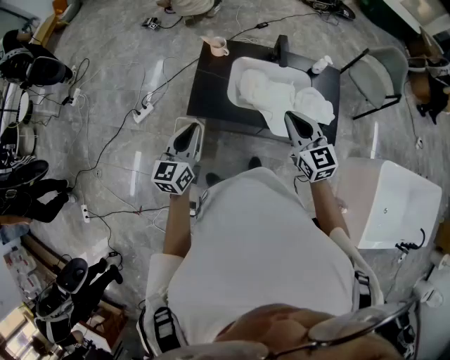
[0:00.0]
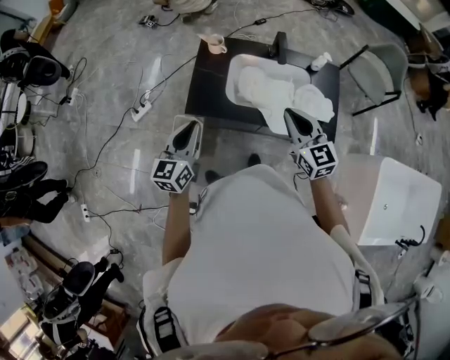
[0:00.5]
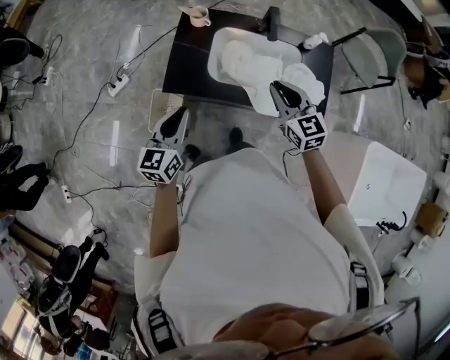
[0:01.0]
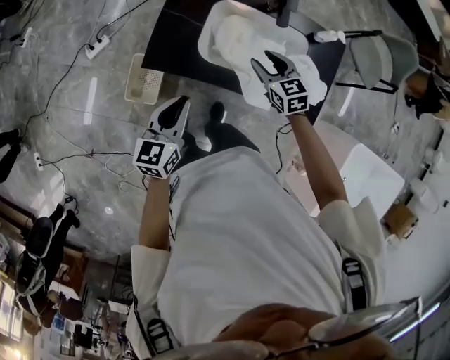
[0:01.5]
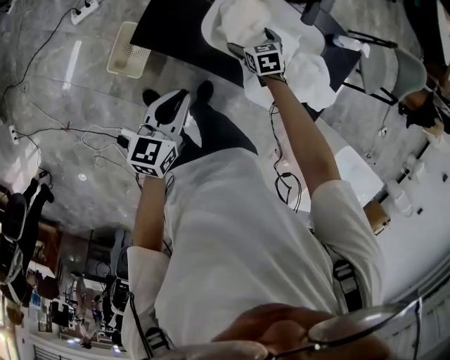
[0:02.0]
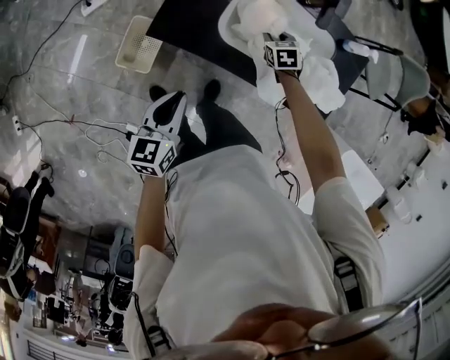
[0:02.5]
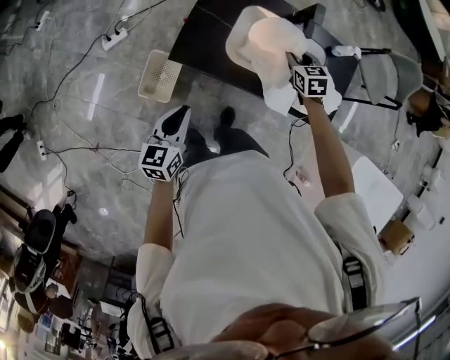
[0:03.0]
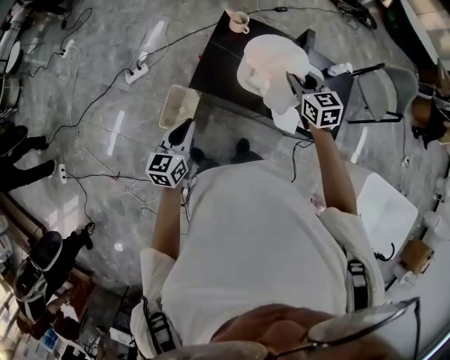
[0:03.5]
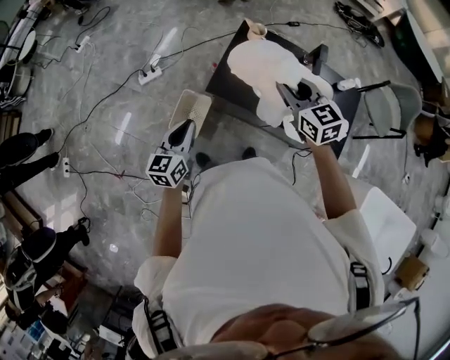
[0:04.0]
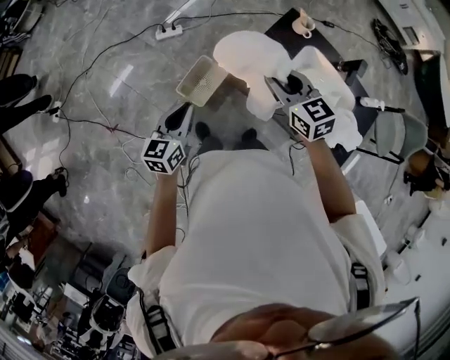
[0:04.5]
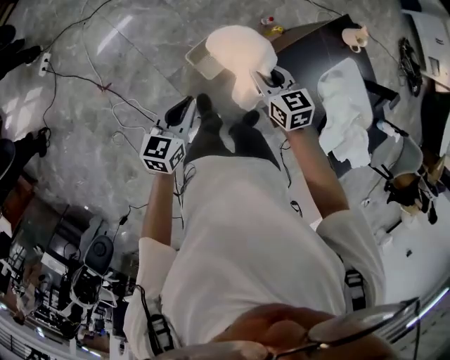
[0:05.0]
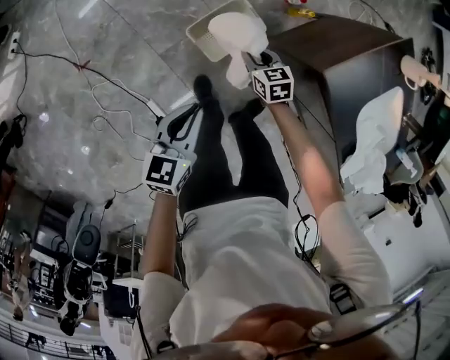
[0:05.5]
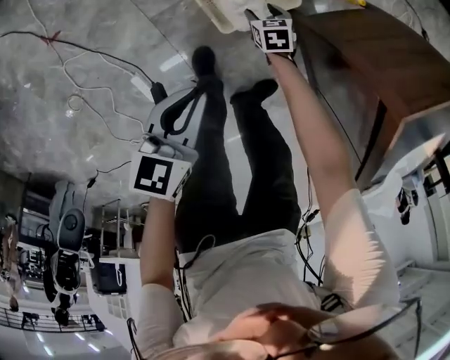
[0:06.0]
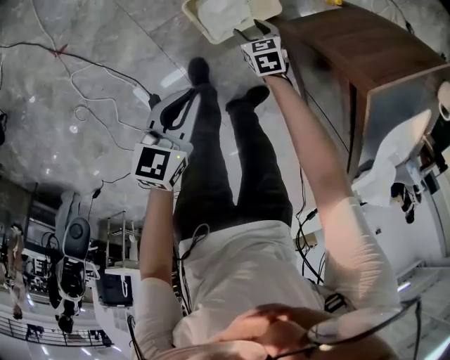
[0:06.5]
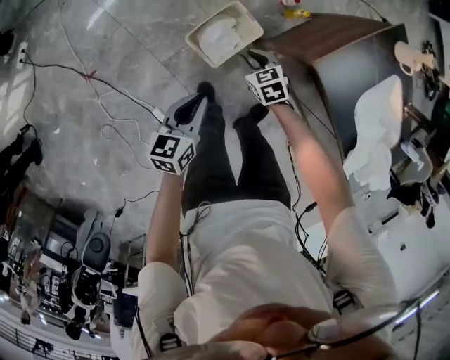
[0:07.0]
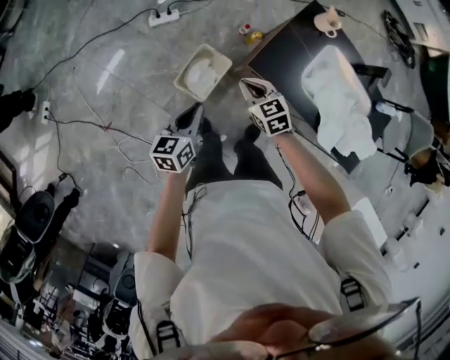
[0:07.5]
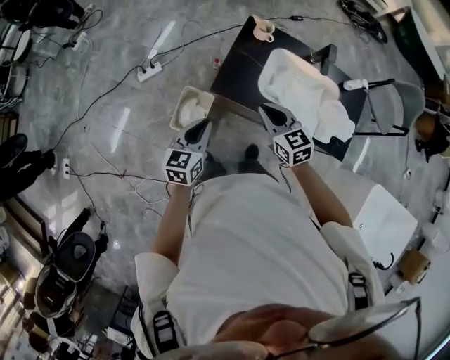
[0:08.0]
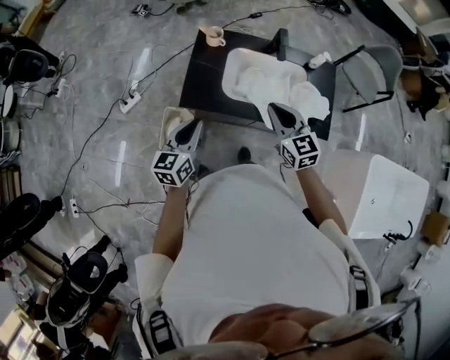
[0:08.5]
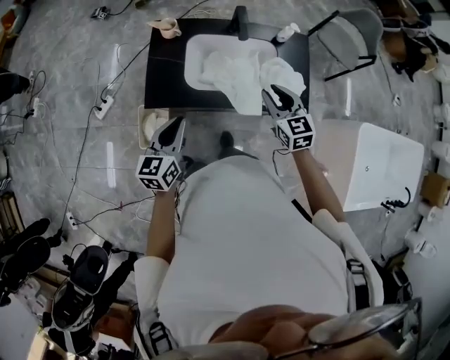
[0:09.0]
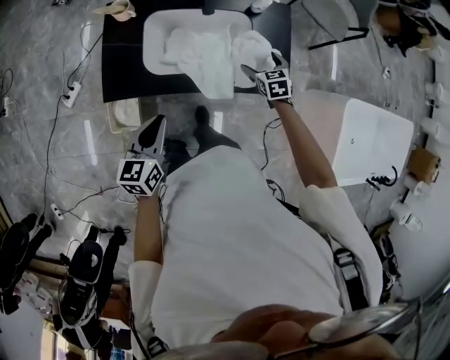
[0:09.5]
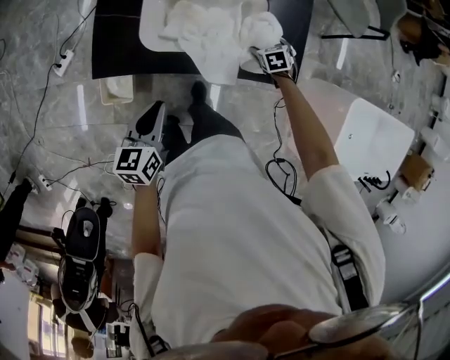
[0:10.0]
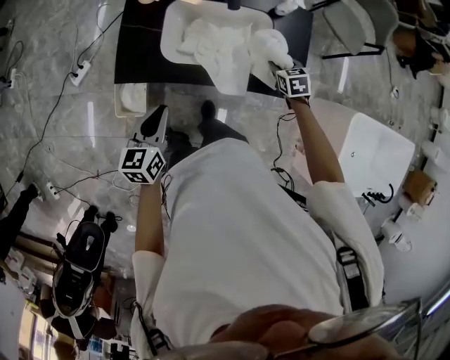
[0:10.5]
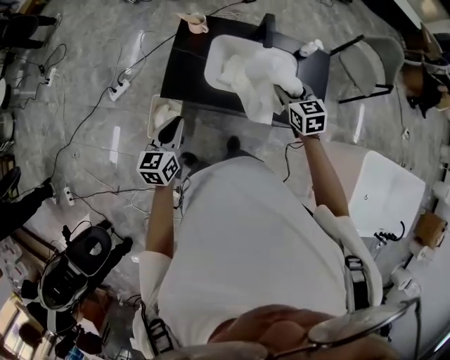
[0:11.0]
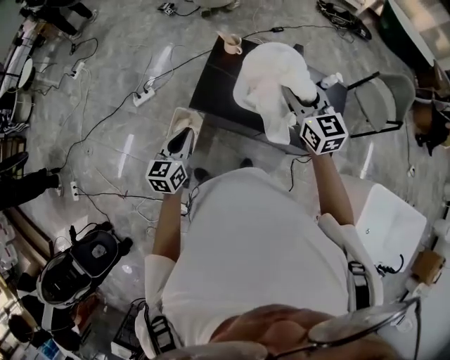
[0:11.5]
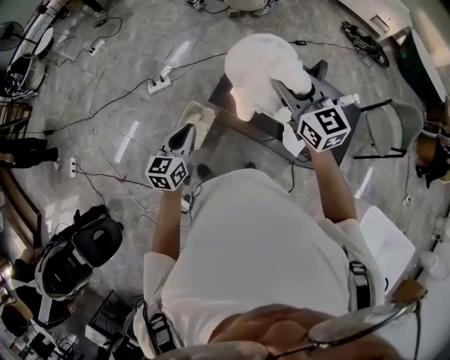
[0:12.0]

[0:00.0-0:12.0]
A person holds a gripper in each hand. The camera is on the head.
0:00.0 to 0:02.0: The left gripper heads downward, covering some 20 cm, and swivels about 20 degrees. The right gripper heads downward and forward, covering about 50 cm, angles its fingers downward, by about 50 degrees, and opens its fingers.
0:02.0 to 0:04.0: The right gripper moves upward, some 50 cm, tilts its fingers roughly 40 degrees upward, and closes its fingers, while the left gripper travels to the left and upward by approximately 25 cm.
0:04.0 to 0:06.0: The right gripper heads downward and to the left, covering about 1 m, and tips its fingers downward by roughly 50 degrees, while the left gripper heads downward and to the left, covering approximately 60 cm, and turns by roughly 30 degrees.
0:06.0 to 0:08.0: The left gripper travels upward by roughly 50 cm, and changes its angle by roughly 40 degrees. Meanwhile the right gripper travels upward by some 80 cm, tilts its fingers approximately 40 degrees upward, and closes up.
0:08.0 to 0:10.0: The left gripper ends up about 30 cm from where it was; the right gripper ends up approximately 60 cm from where it was, angles its fingers downward, by about 40 degrees, and opens its fingers.
0:10.0 to 0:12.0: The right gripper goes about 60 cm upward, points its fingers about 60 degrees further upward, and closes up; the left gripper changes place by some 35 cm, and changes its angle by roughly 30 degrees.

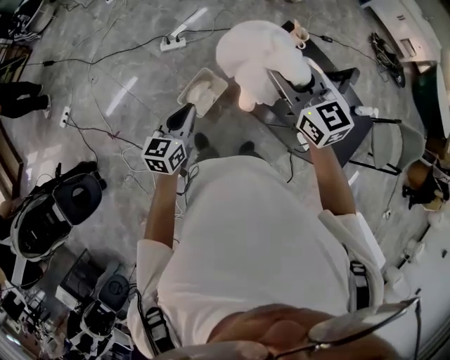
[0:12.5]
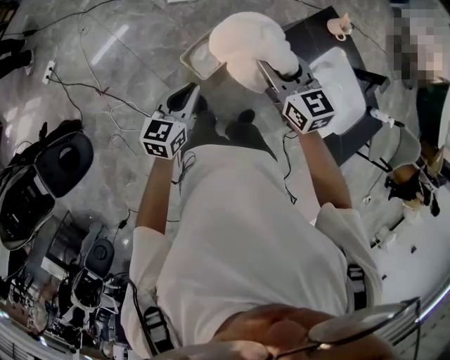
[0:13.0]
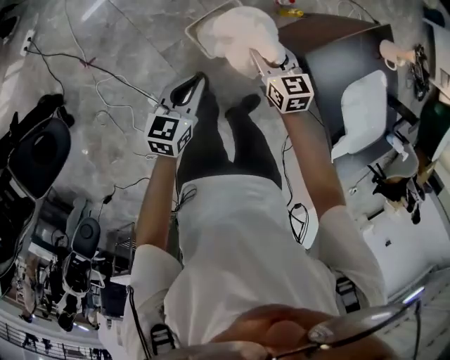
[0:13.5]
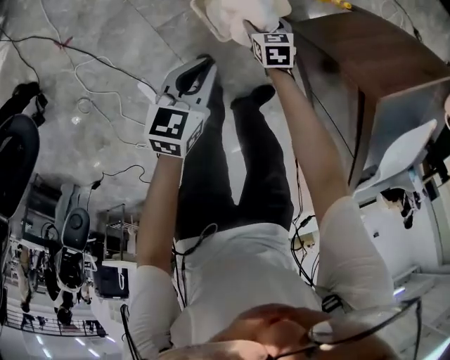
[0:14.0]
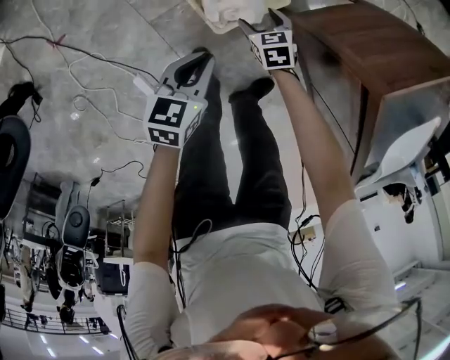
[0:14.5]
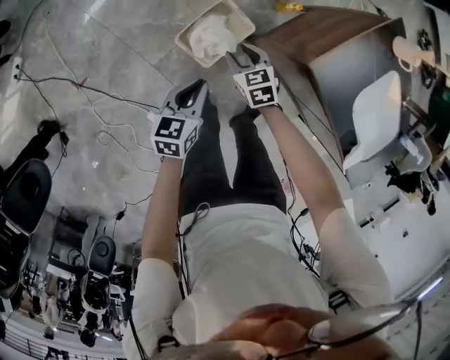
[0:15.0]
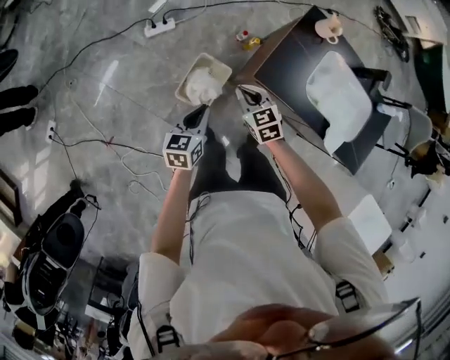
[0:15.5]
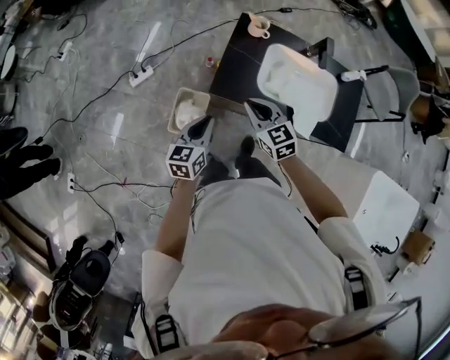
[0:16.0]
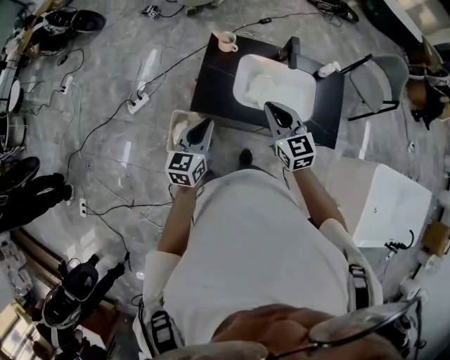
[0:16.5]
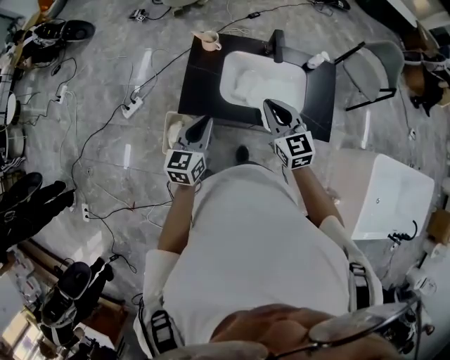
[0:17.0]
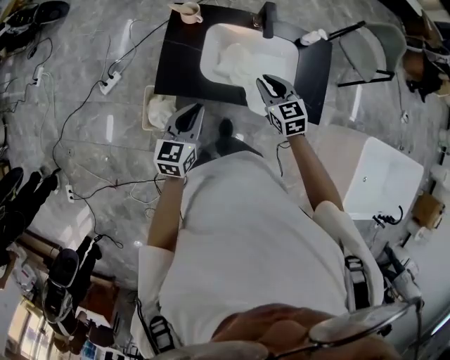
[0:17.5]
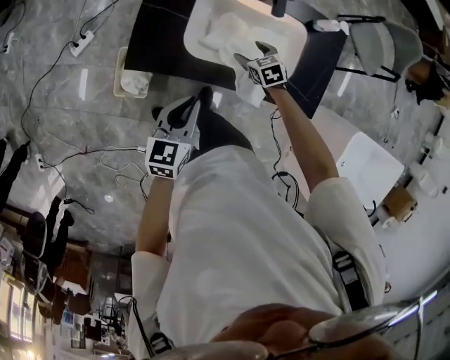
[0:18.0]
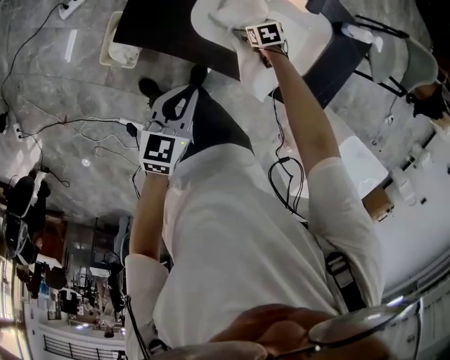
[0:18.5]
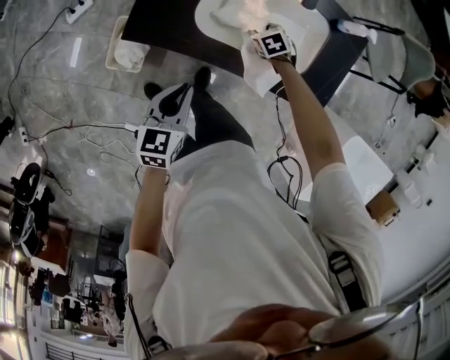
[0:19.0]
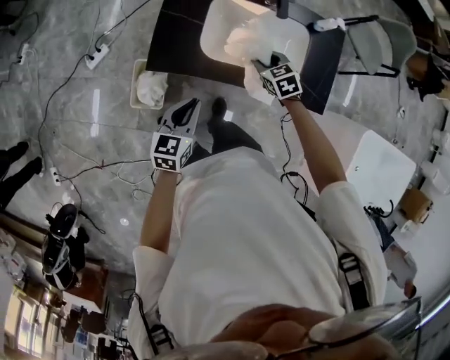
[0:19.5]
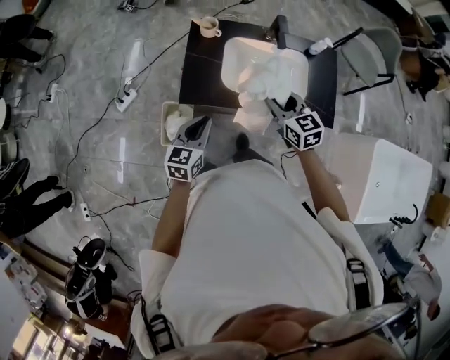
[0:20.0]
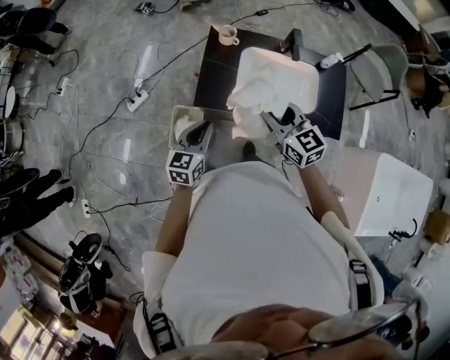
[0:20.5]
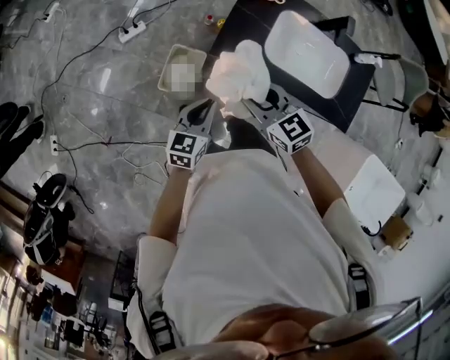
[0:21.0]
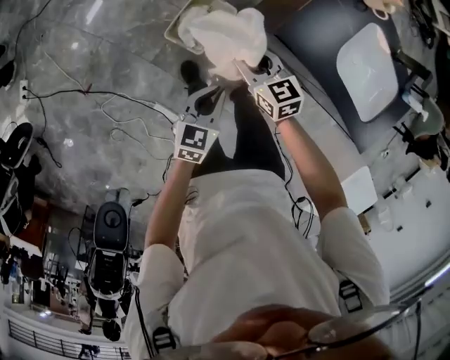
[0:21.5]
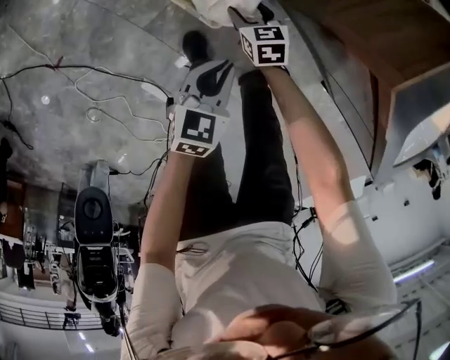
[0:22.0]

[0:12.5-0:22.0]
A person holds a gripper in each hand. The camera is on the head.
0:12.5 to 0:14.5: The right gripper is displaced downward by approximately 90 cm, tips its fingers downward by about 50 degrees, and opens up, while the left gripper goes some 60 cm downward, and swivels approximately 30 degrees.
0:14.5 to 0:16.5: Both grippers move upward, about 70 cm. The right gripper tips its fingers upward by some 50 degrees, and closes up, while the left gripper changes its angle by some 50 degrees.
0:16.5 to 0:18.0: The right gripper shifts about 40 cm downward, tilts its fingers some 40 degrees downward, and opens its fingers. Meanwhile the left gripper heads downward and to the right, covering approximately 20 cm.
0:18.0 to 0:20.0: The right gripper heads upward, covering approximately 30 cm, angles its fingers upward, by approximately 30 degrees, and closes up; the left gripper changes place by about 15 cm.
0:20.0 to 0:22.0: The two grippers go about 60 cm downward. The left gripper rotates roughly 30 degrees. The right gripper points its fingers about 30 degrees further downward.

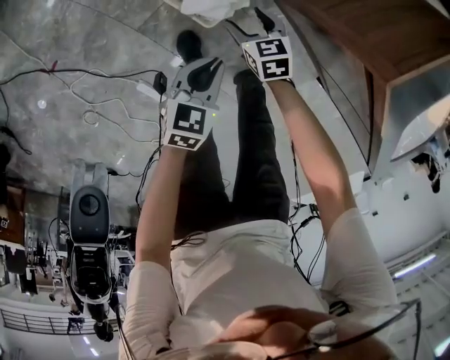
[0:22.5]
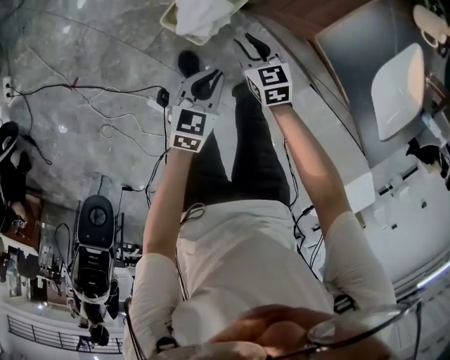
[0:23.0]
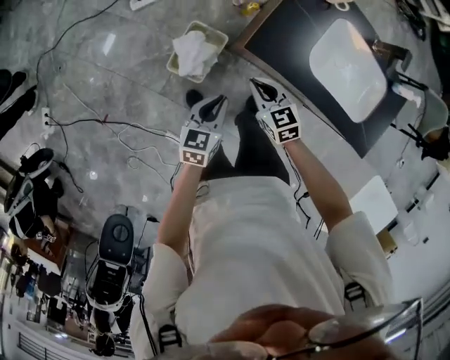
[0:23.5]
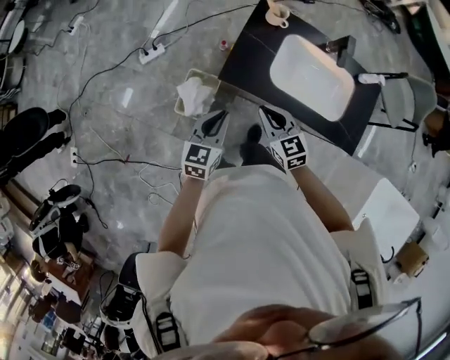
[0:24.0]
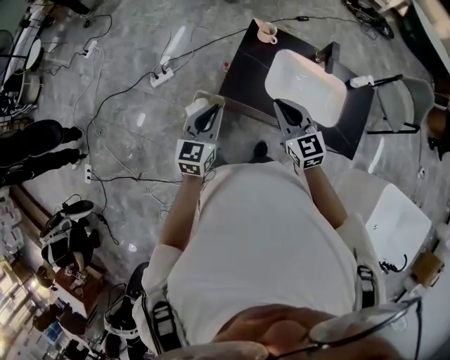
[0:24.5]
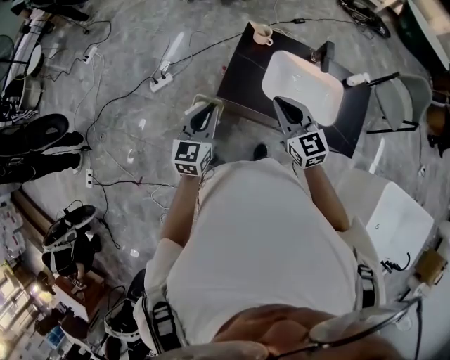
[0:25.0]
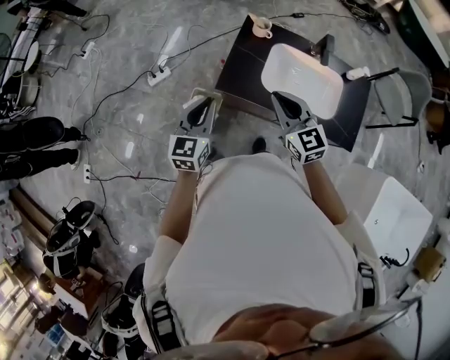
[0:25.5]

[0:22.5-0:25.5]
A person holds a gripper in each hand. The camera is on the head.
0:22.5 to 0:24.0: The two grippers go about 60 cm upward and to the right. The right gripper tips its fingers upward by roughly 30 degrees, and closes up. The left gripper turns by approximately 30 degrees.
0:24.0 to 0:25.5: The left gripper is displaced upward by some 10 cm. Meanwhile the right gripper goes roughly 15 cm upward and to the right.

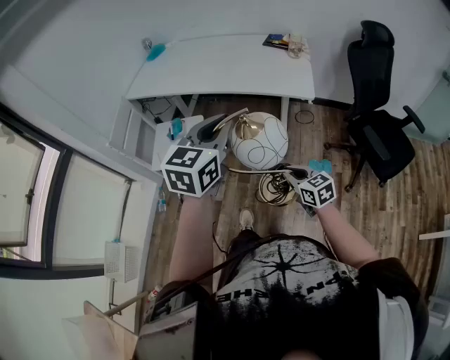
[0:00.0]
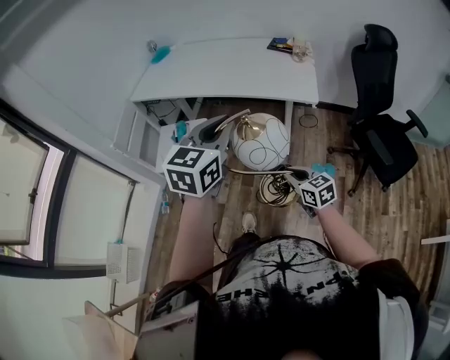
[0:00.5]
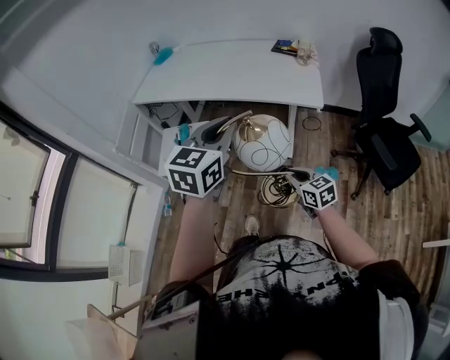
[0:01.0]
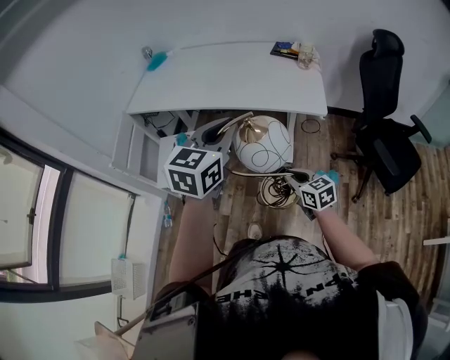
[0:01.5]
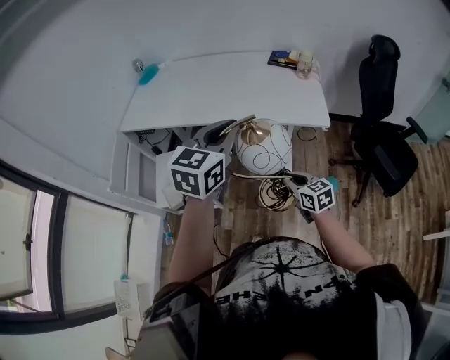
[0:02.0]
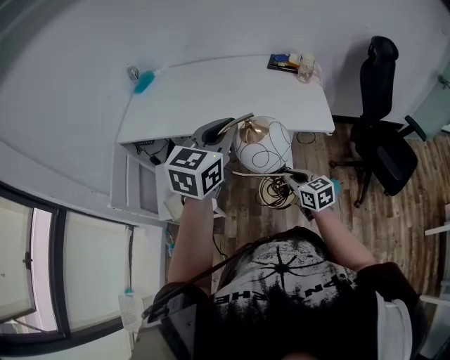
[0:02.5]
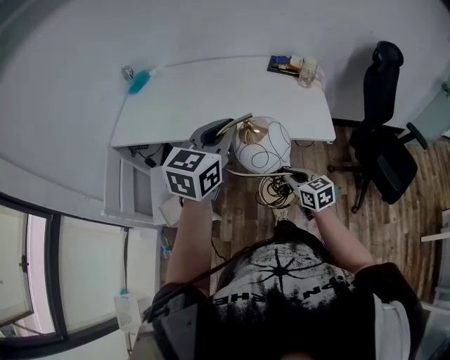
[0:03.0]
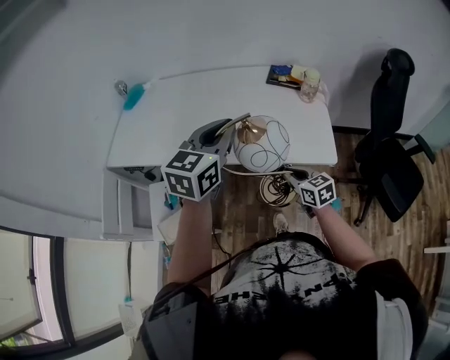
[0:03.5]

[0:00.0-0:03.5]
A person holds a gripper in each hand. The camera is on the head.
0:00.0 to 0:02.0: Both grippers move forward, some 15 cm.
0:02.0 to 0:03.5: The grippers both shift forward by some 20 cm.
